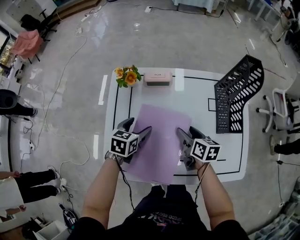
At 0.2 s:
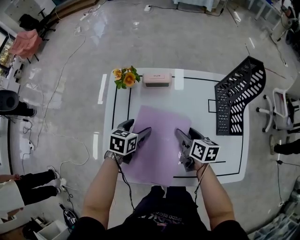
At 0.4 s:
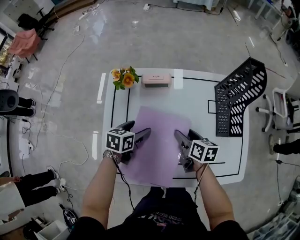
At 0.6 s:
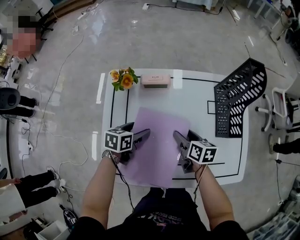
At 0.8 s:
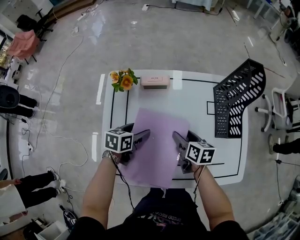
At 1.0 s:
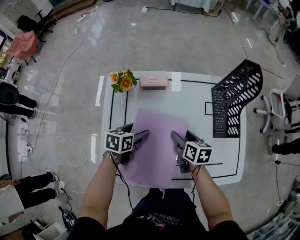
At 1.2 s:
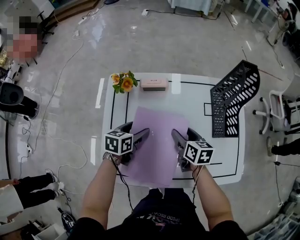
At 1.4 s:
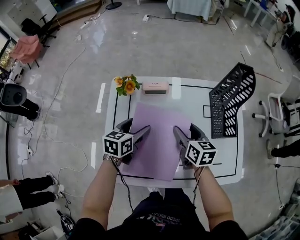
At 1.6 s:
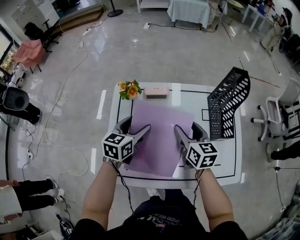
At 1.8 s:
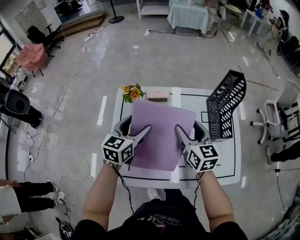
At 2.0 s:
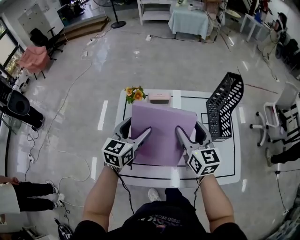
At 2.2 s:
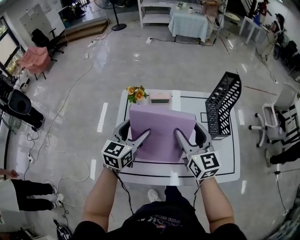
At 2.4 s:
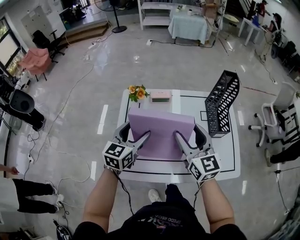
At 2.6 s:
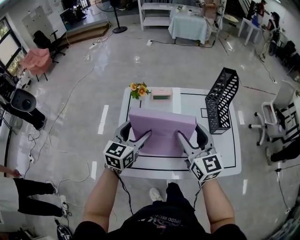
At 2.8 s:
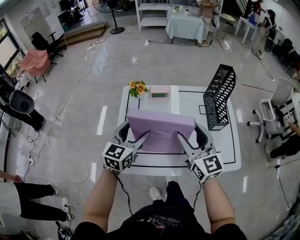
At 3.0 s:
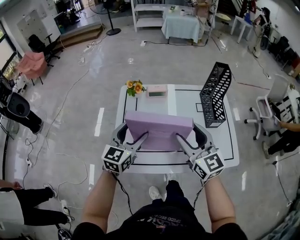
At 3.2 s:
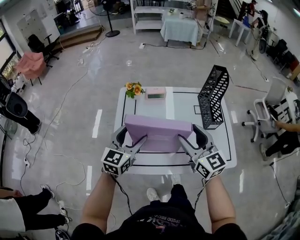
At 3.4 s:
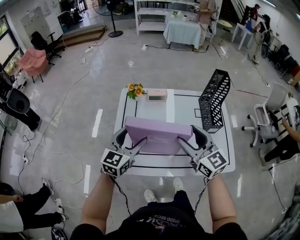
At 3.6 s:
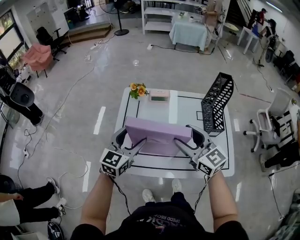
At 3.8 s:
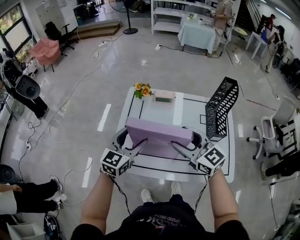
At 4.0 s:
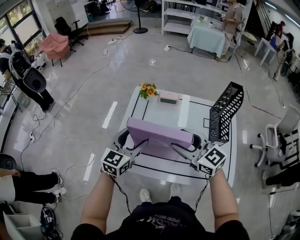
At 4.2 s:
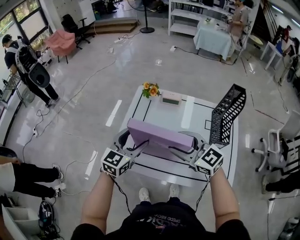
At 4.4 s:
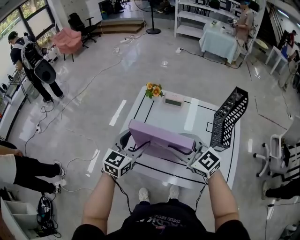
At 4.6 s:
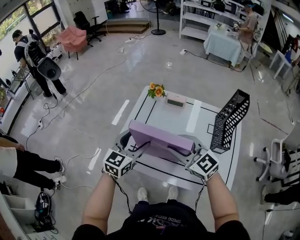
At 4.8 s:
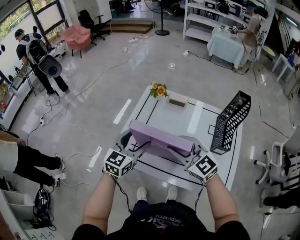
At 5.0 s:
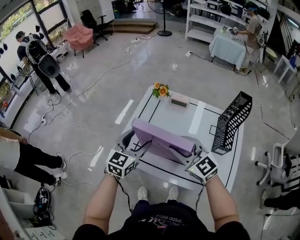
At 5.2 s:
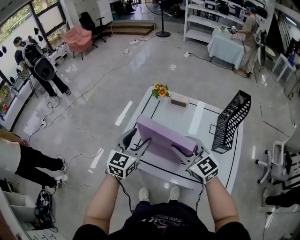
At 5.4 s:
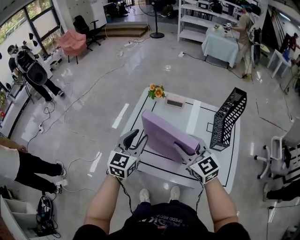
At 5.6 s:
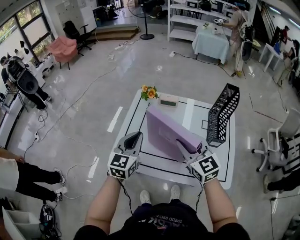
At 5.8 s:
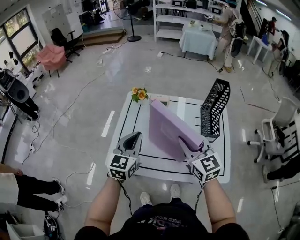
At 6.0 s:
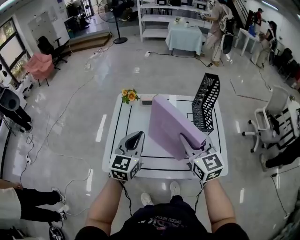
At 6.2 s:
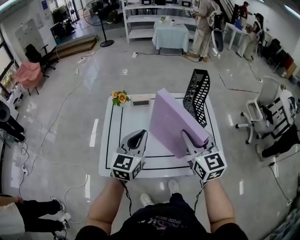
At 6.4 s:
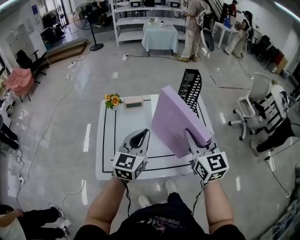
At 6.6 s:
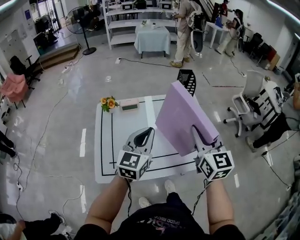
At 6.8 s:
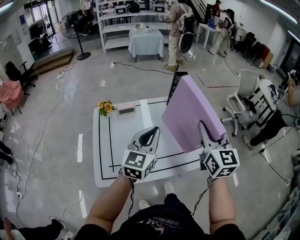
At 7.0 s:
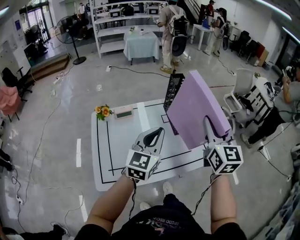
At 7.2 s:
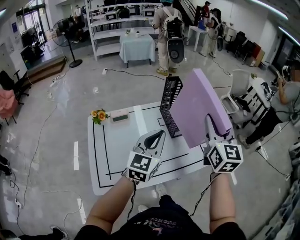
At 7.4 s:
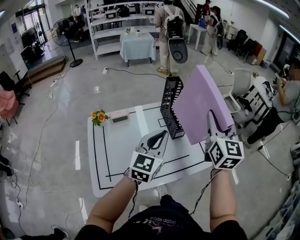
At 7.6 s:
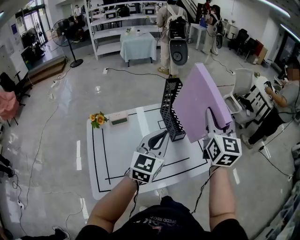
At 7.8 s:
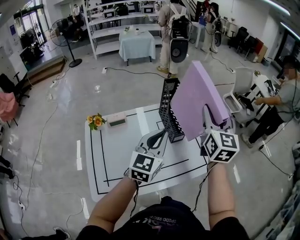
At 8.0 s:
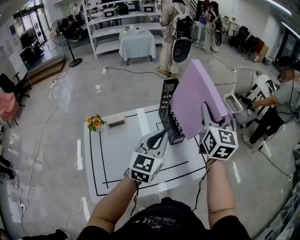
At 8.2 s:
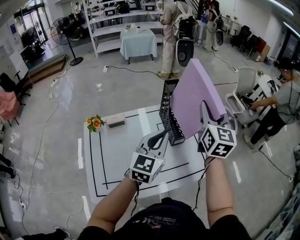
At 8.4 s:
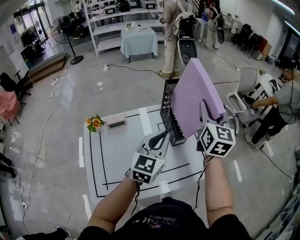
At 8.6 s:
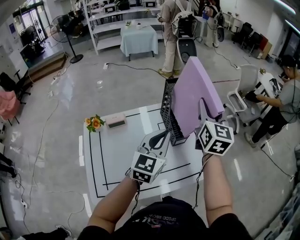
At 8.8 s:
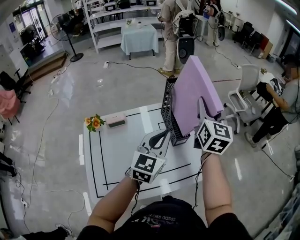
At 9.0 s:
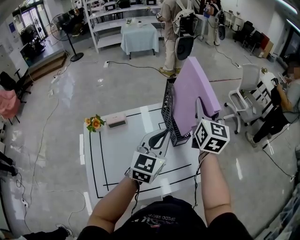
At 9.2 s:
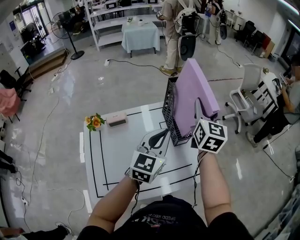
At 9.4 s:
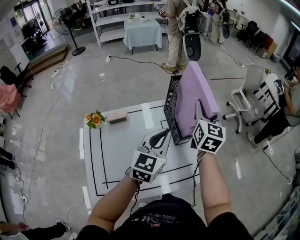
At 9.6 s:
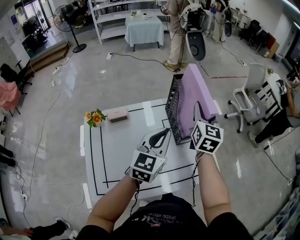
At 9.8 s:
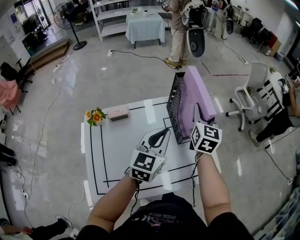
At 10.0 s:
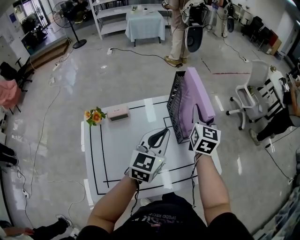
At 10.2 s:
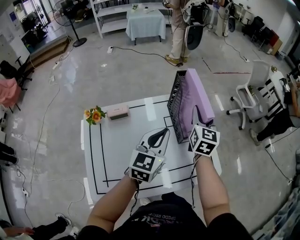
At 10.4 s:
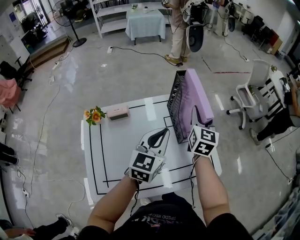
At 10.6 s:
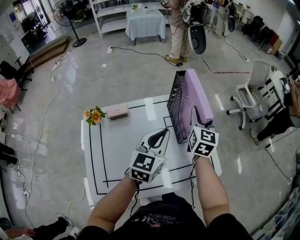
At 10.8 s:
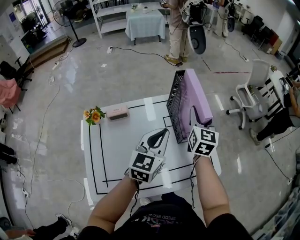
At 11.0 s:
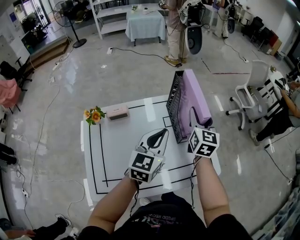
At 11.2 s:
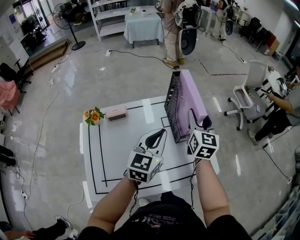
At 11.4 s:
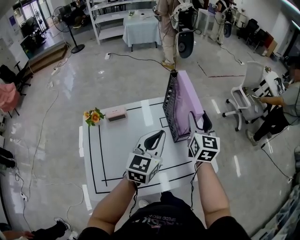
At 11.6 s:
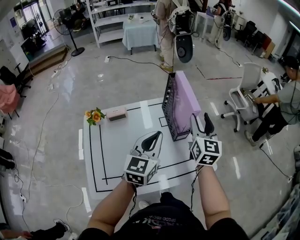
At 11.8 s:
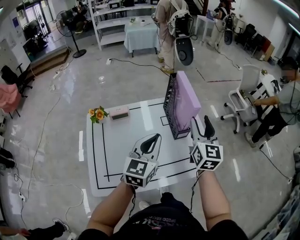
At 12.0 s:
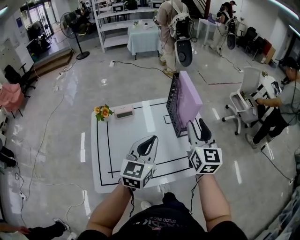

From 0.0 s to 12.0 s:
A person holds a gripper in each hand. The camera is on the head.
From 0.0 s to 1.6 s: Both grippers travel together upward, some 10 cm. The right gripper changes its angle by roughly 20 degrees.
From 1.6 s to 3.0 s: Both grippers travel together backward and upward, roughly 20 cm. The left gripper turns by roughly 20 degrees. Meanwhile the right gripper rotates some 30 degrees.
From 3.0 s to 4.4 s: The right gripper rotates some 40 degrees.
From 4.4 s to 6.0 s: The left gripper ends up some 10 cm from where it was, and closes its fingers; the right gripper shifts by approximately 15 cm, and rotates roughly 40 degrees.
From 6.0 s to 7.6 s: The right gripper changes place by roughly 25 cm, and turns by approximately 50 degrees, while the left gripper shifts by about 20 cm, and changes its angle by roughly 30 degrees.
From 7.6 s to 9.0 s: The right gripper shifts about 10 cm forward. Meanwhile the left gripper is displaced forward by about 10 cm.
From 9.0 s to 10.4 s: The right gripper goes roughly 10 cm downward. The left gripper shifts by some 5 cm.
From 10.4 s to 12.0 s: The left gripper goes roughly 15 cm backward; the right gripper goes some 20 cm backward and upward.

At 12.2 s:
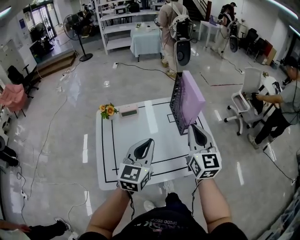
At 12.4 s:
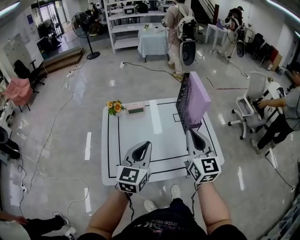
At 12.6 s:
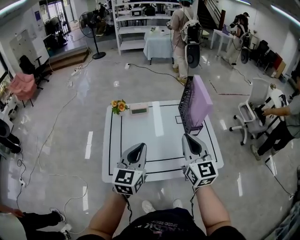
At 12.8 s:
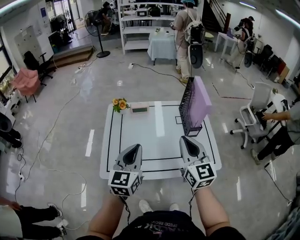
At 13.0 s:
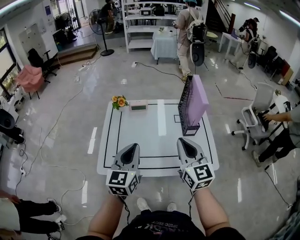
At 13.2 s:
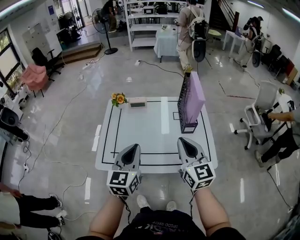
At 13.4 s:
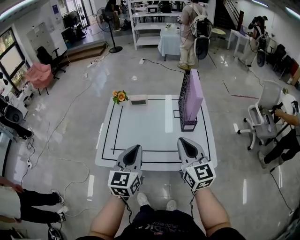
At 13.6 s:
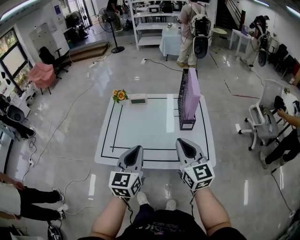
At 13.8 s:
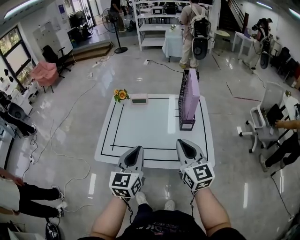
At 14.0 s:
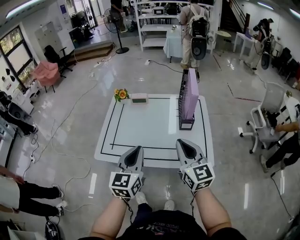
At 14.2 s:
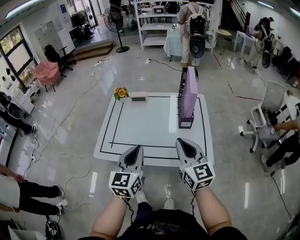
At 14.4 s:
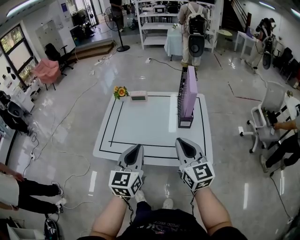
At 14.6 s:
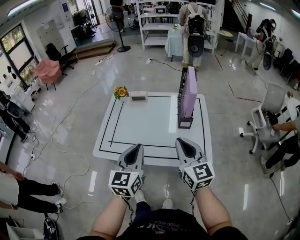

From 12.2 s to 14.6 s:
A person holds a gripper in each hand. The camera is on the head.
From 12.2 s to 13.4 s: The two grippers go roughly 10 cm backward. The right gripper swivels approximately 20 degrees. Meanwhile the left gripper turns by roughly 20 degrees.
From 13.4 s to 14.6 s: The left gripper shifts by some 5 cm.

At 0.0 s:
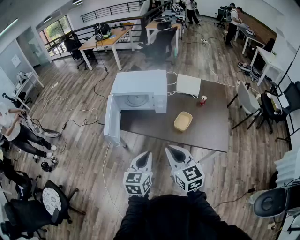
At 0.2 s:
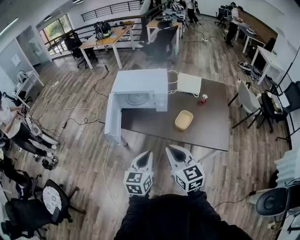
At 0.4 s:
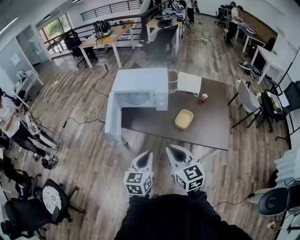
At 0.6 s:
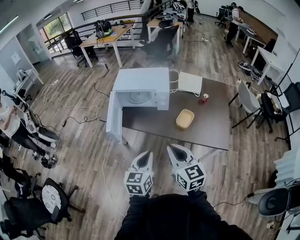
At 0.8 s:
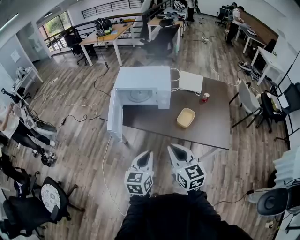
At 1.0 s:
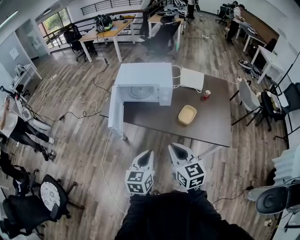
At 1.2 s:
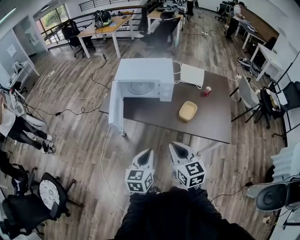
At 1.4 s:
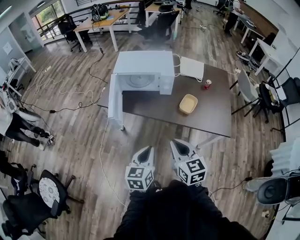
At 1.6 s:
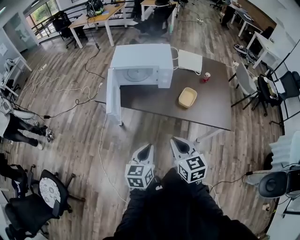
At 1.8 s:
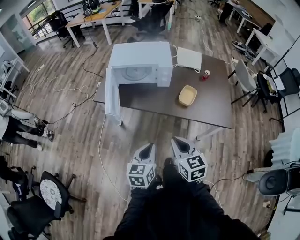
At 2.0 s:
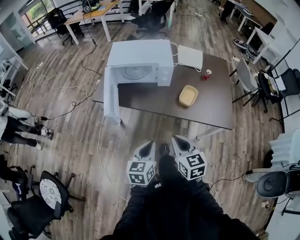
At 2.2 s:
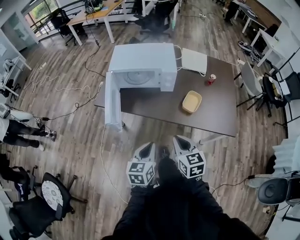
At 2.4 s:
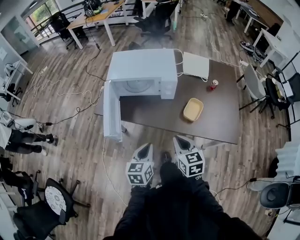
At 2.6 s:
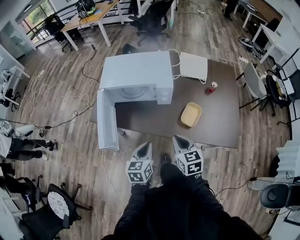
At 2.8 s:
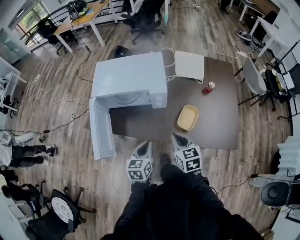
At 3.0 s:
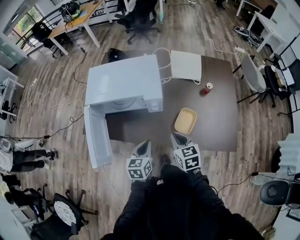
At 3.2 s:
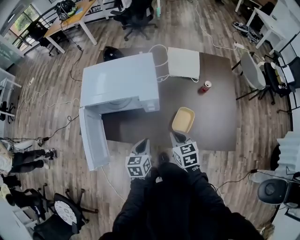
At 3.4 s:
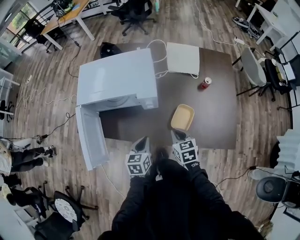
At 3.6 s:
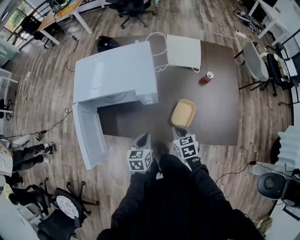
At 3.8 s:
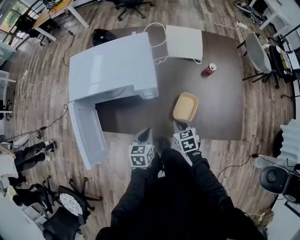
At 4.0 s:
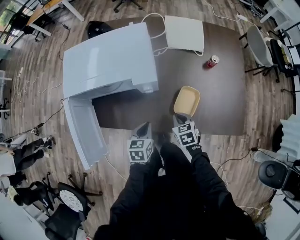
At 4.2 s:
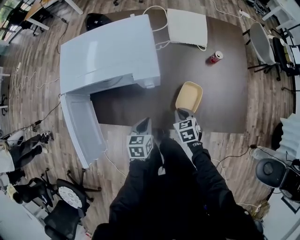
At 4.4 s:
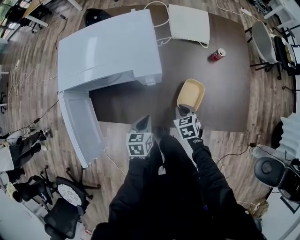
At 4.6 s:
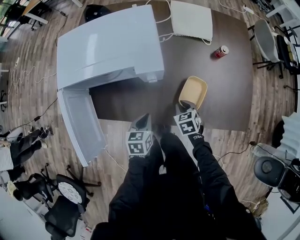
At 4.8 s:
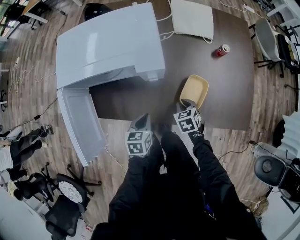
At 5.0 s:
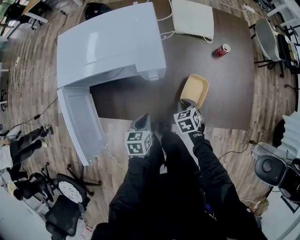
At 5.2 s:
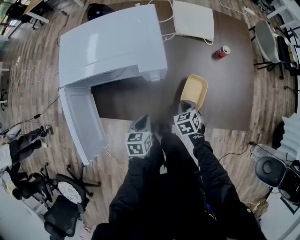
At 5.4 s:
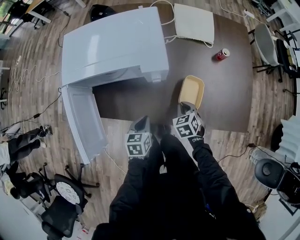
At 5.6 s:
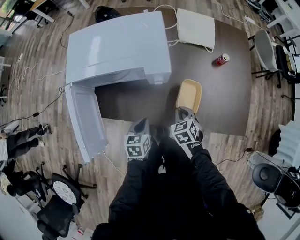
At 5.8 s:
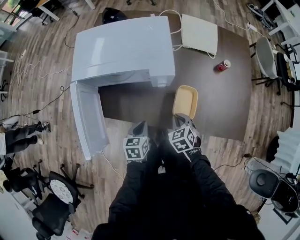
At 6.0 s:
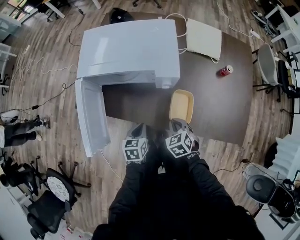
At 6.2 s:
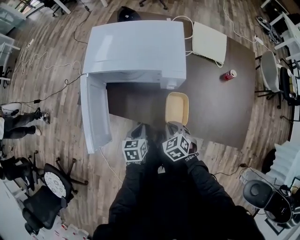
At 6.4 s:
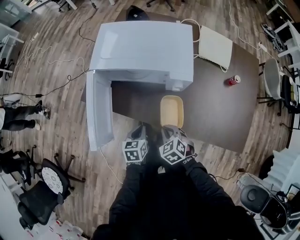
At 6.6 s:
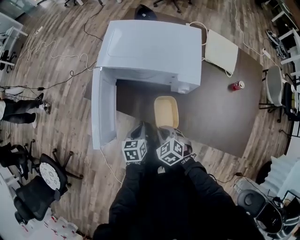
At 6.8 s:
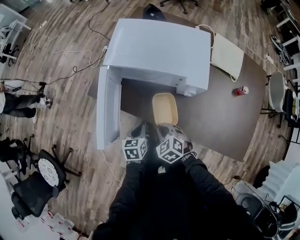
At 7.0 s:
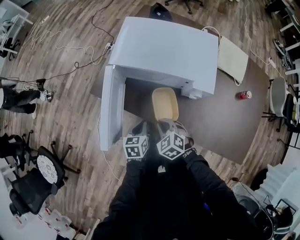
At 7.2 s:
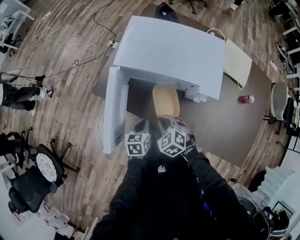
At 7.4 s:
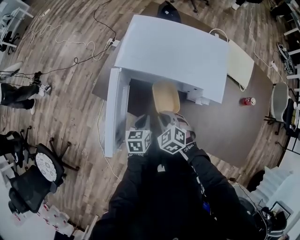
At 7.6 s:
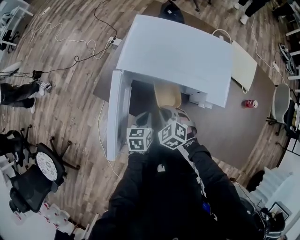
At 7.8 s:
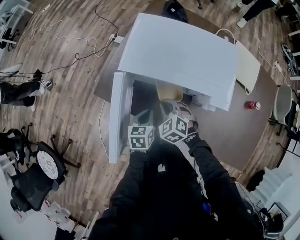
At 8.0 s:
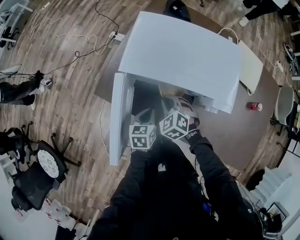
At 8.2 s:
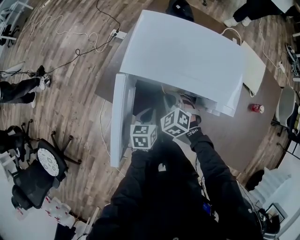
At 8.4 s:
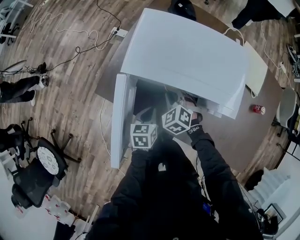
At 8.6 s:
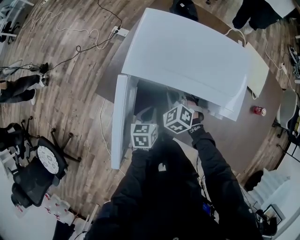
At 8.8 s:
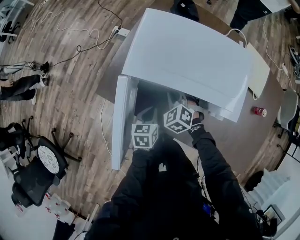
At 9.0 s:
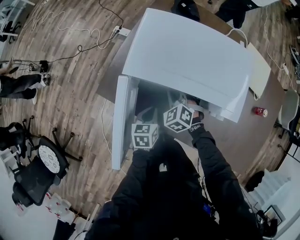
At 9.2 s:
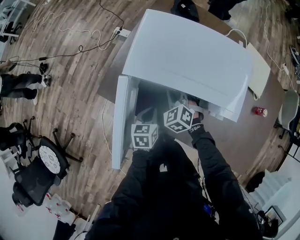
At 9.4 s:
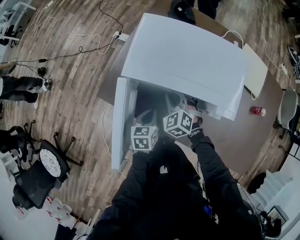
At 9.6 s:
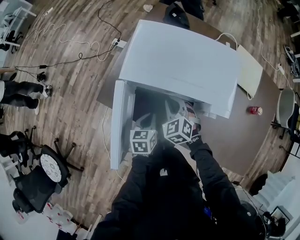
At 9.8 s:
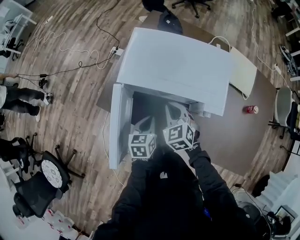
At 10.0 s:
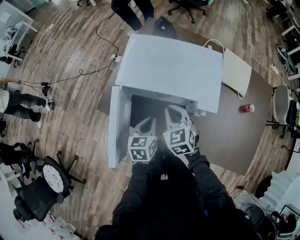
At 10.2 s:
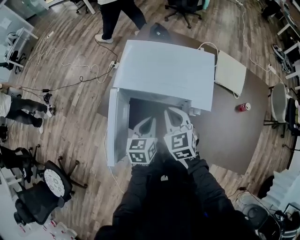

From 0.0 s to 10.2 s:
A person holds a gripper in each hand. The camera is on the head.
From 0.0 s to 1.4 s: Both grippers move to the left and downward, approximately 10 cm.
From 1.4 s to 3.0 s: The grippers both shift forward and downward by about 35 cm.
From 3.0 s to 4.4 s: Both grippers move downward, approximately 15 cm. The right gripper turns by some 20 degrees.
From 4.4 s to 5.8 s: Both grippers move to the left, approximately 5 cm.
From 5.8 s to 7.2 s: The left gripper shifts by roughly 15 cm, while the right gripper shifts by roughly 25 cm, and turns by approximately 40 degrees.
From 7.2 s to 8.8 s: The right gripper heads forward, covering some 20 cm, while the left gripper moves forward, roughly 10 cm.
From 8.8 s to 10.2 s: The right gripper goes roughly 20 cm upward and backward, and swivels approximately 40 degrees. The left gripper travels upward by roughly 15 cm.
